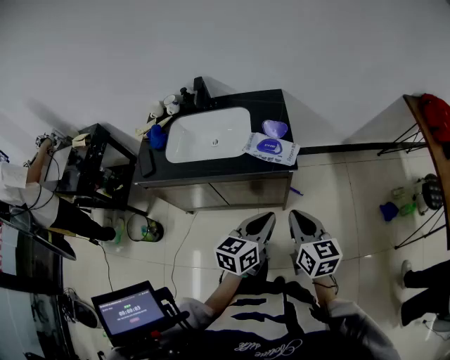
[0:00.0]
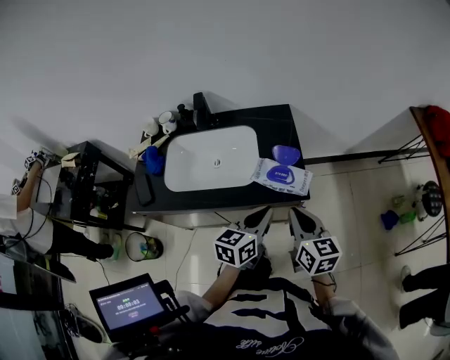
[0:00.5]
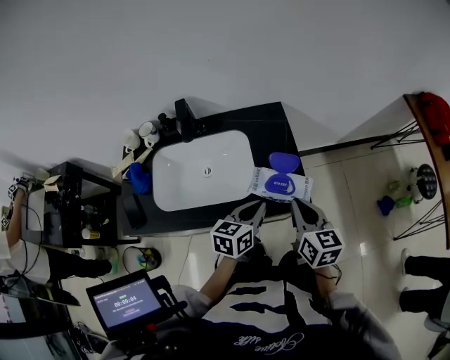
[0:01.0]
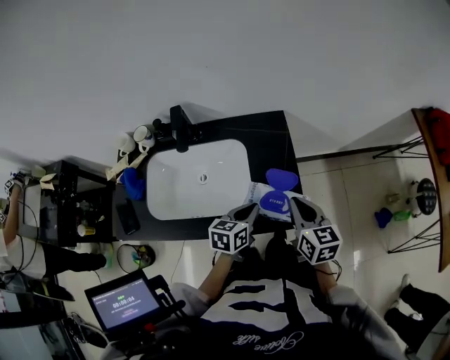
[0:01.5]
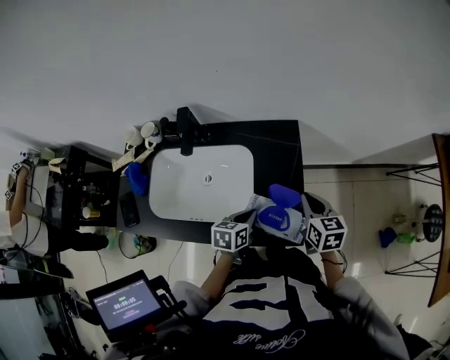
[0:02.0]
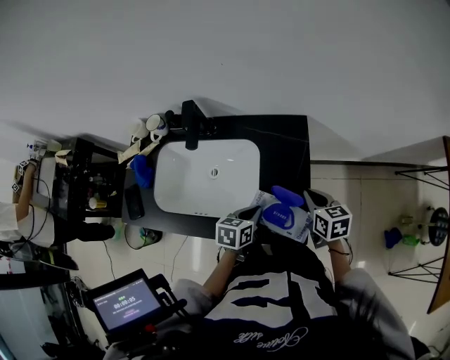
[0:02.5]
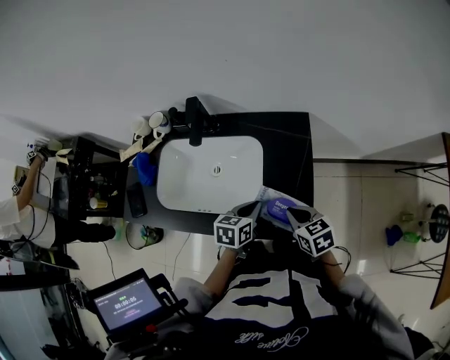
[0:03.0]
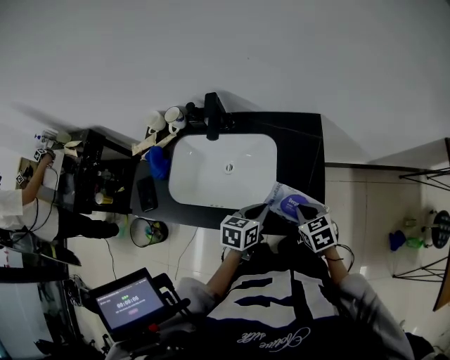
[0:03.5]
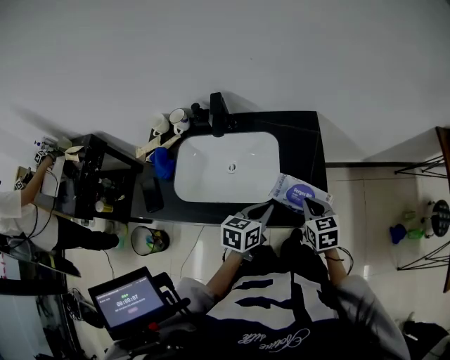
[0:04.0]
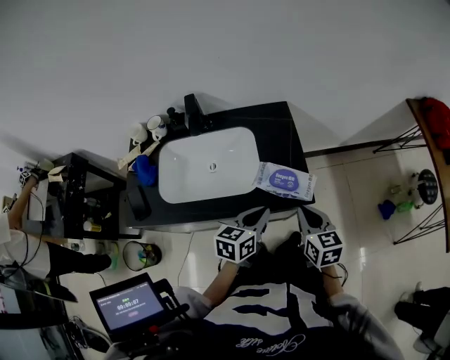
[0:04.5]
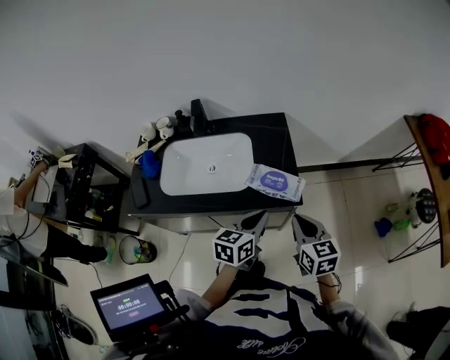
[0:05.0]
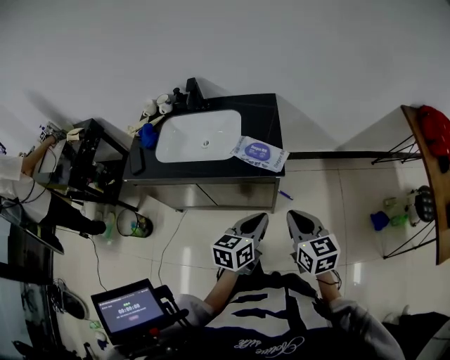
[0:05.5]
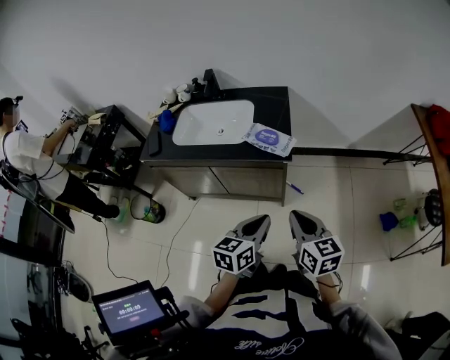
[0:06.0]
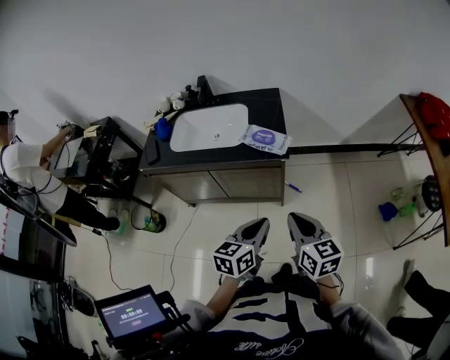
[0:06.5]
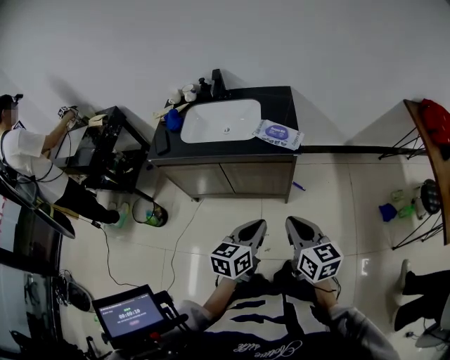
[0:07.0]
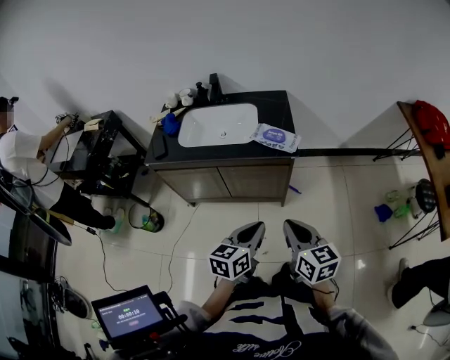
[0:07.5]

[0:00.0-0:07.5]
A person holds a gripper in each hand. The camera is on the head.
0:00.0 to 0:02.0: The left gripper travels forward, downward and to the left by some 35 cm, and turns by about 30 degrees. Meanwhile the right gripper is displaced forward by some 35 cm.
0:02.0 to 0:04.0: The right gripper moves backward and to the left, about 10 cm. The left gripper travels upward and backward by roughly 10 cm.
0:04.0 to 0:05.5: The left gripper is displaced backward and to the right by roughly 25 cm; the right gripper is displaced backward, to the right and upward by approximately 30 cm.
0:05.5 to 0:07.5: Both grippers move backward and to the left, approximately 20 cm.

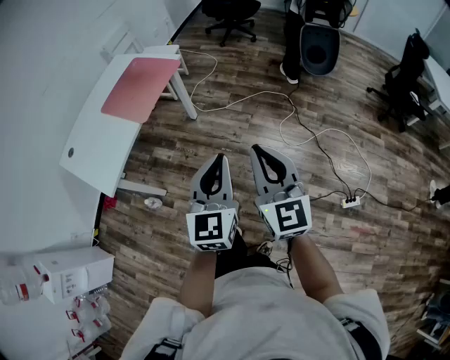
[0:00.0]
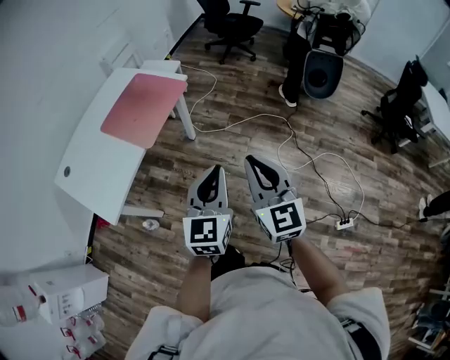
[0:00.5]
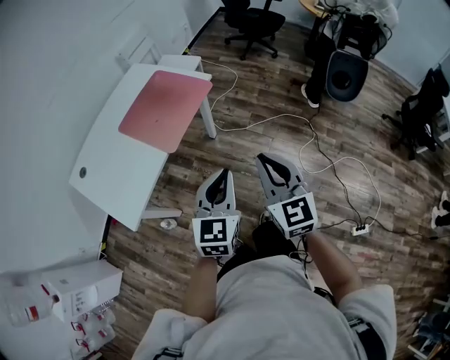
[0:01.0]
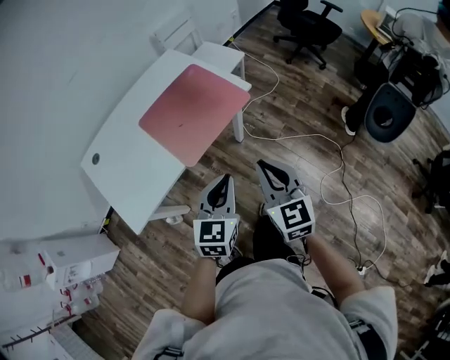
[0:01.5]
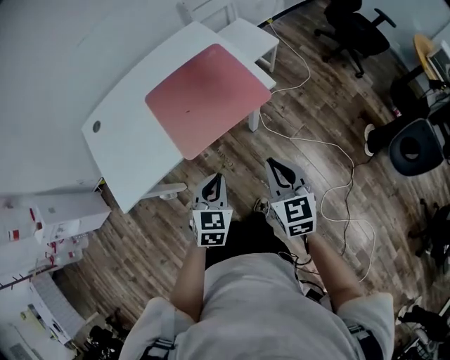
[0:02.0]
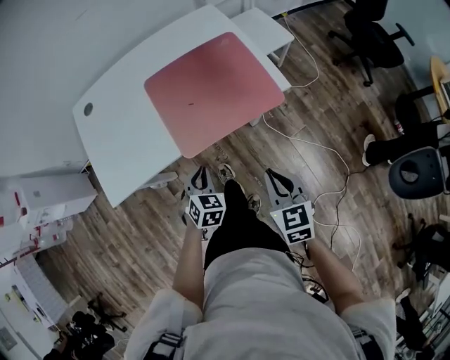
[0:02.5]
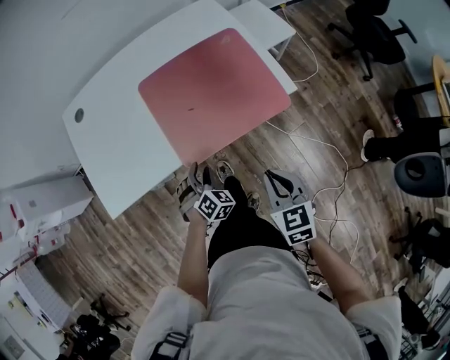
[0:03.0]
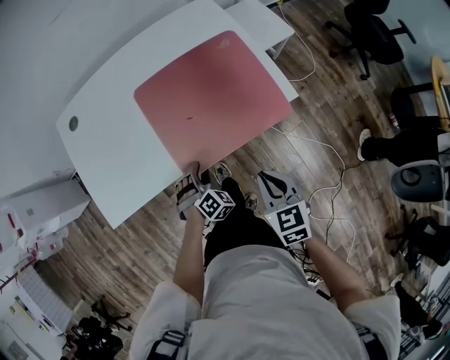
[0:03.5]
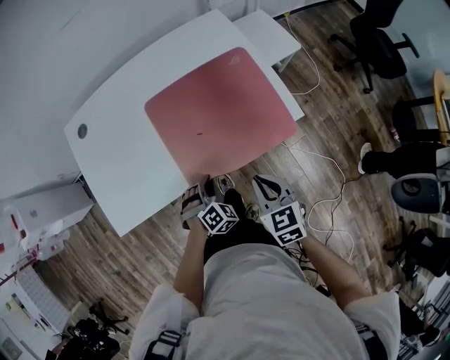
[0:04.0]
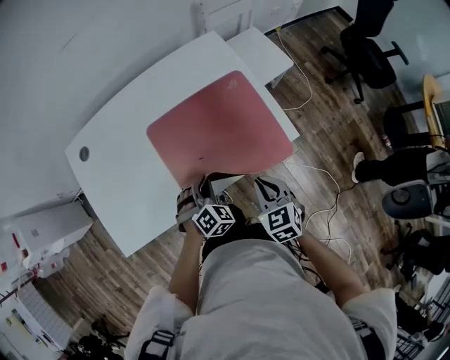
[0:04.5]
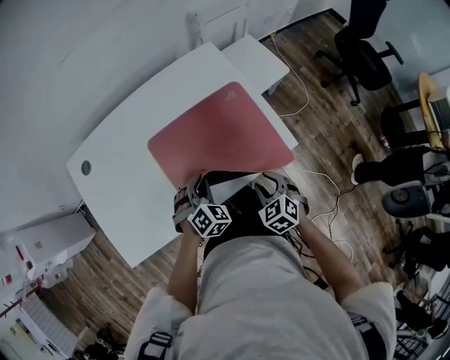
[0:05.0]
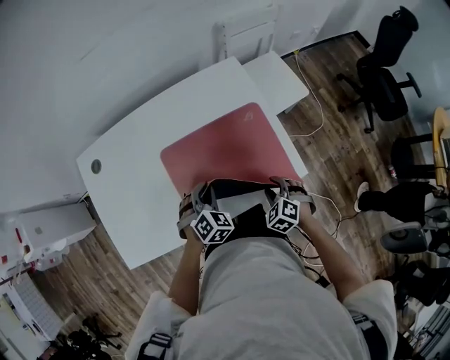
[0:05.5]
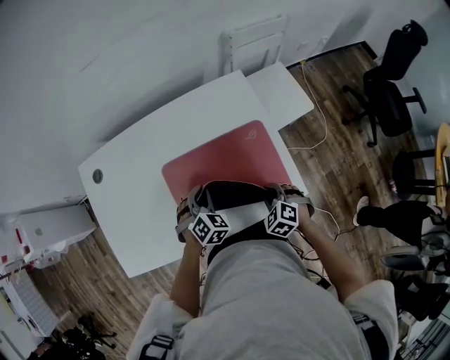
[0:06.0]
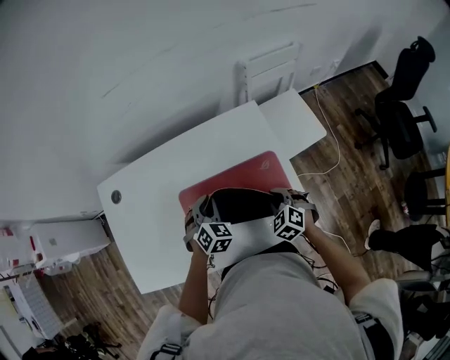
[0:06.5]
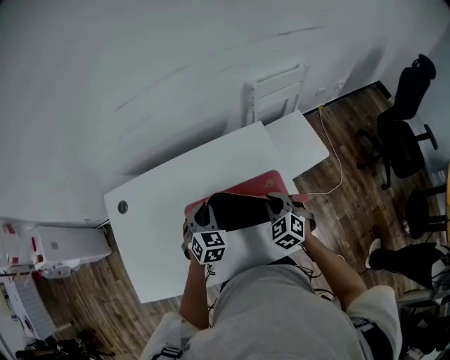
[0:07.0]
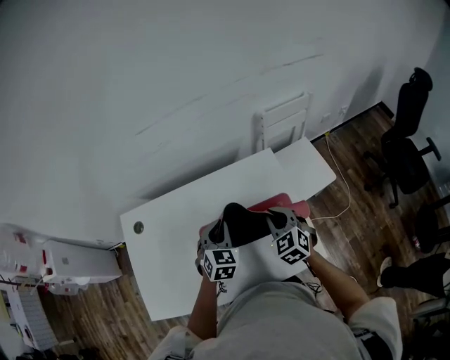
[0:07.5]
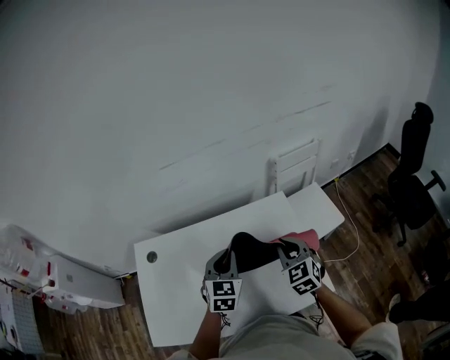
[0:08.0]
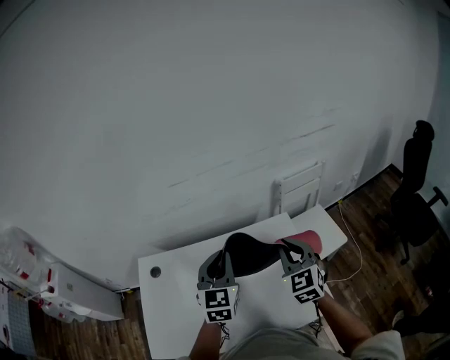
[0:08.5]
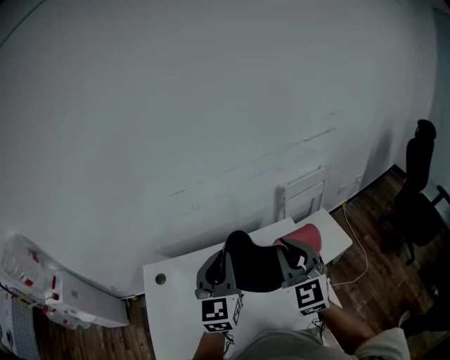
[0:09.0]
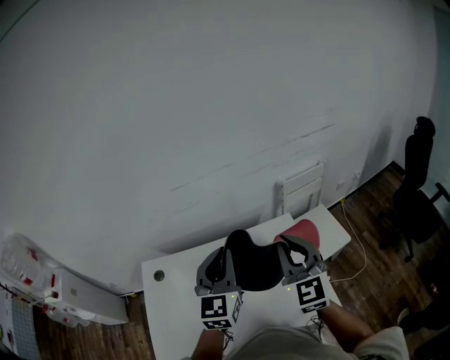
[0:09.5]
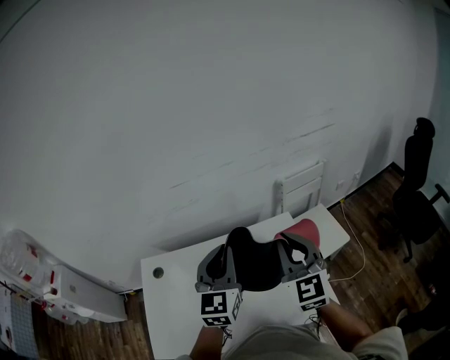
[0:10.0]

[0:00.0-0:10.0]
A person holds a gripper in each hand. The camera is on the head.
0:00.0 to 0:02.0: The right gripper moves roughly 50 cm, and swivels about 40 degrees. The left gripper ends up roughly 40 cm from where it was, and angles its fingers downward, by some 30 degrees.
0:02.0 to 0:04.0: The left gripper is displaced downward and forward by about 25 cm, rotates roughly 40 degrees, and opens and closes again, while the right gripper is displaced forward, downward and to the left by about 20 cm, and swivels roughly 20 degrees.
0:04.0 to 0:06.0: The right gripper heads forward, downward and to the right, covering about 20 cm, rotates around the line of its fingers by some 40 degrees, counterclockwise from behind, and opens, then closes once more, while the left gripper is displaced forward by approximately 20 cm.
0:06.0 to 0:08.0: The grippers both shift upward and forward by approximately 25 cm. The right gripper tilts its fingers roughly 40 degrees upward; the left gripper rotates some 40 degrees.
0:08.0 to 0:10.0: The two grippers go about 15 cm upward. The left gripper rotates some 20 degrees, while the right gripper changes its angle by approximately 30 degrees.

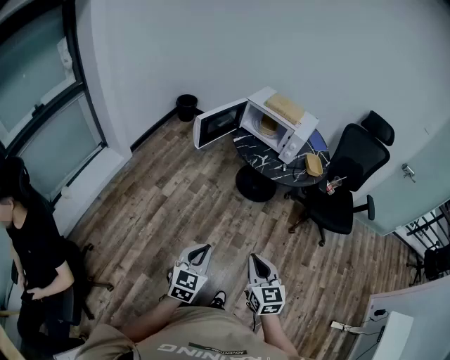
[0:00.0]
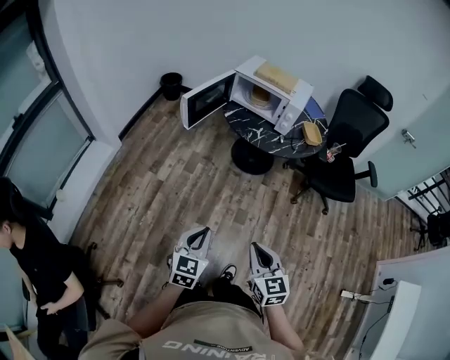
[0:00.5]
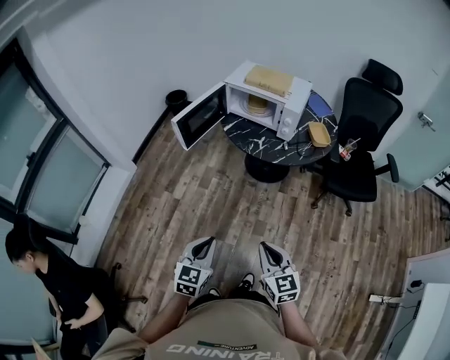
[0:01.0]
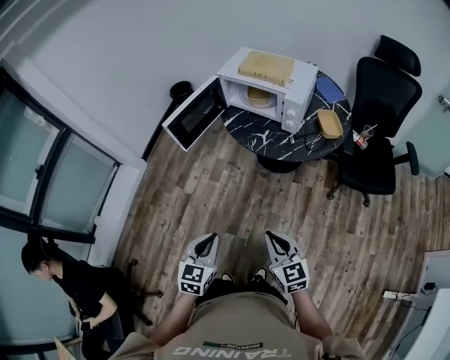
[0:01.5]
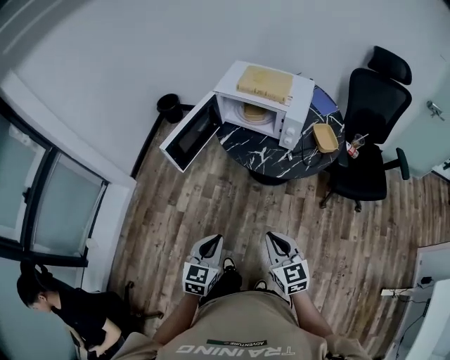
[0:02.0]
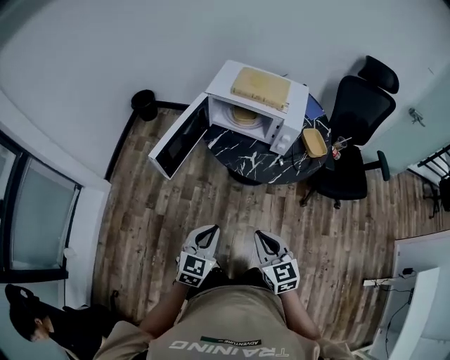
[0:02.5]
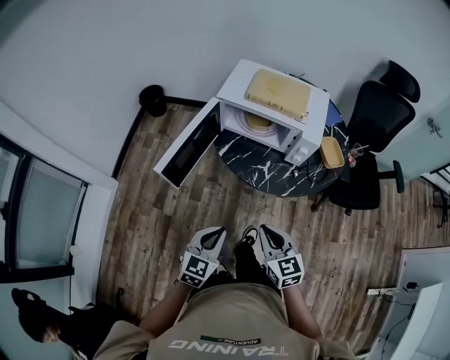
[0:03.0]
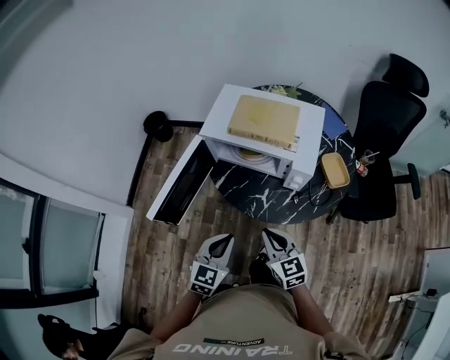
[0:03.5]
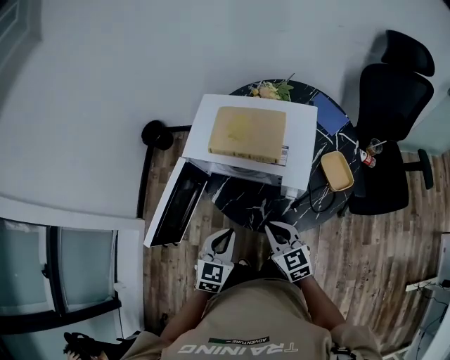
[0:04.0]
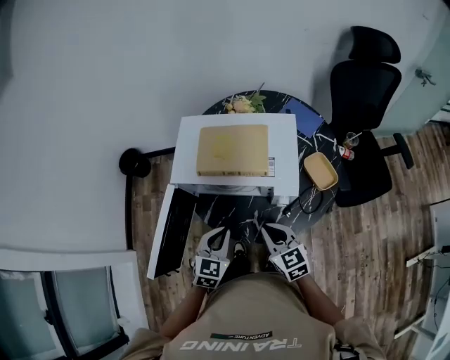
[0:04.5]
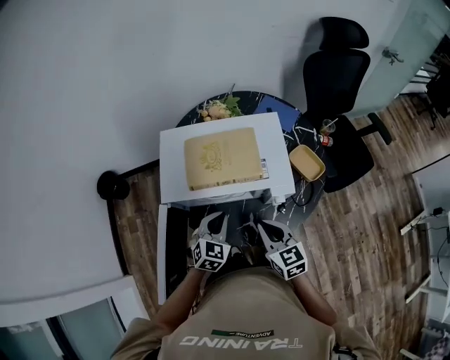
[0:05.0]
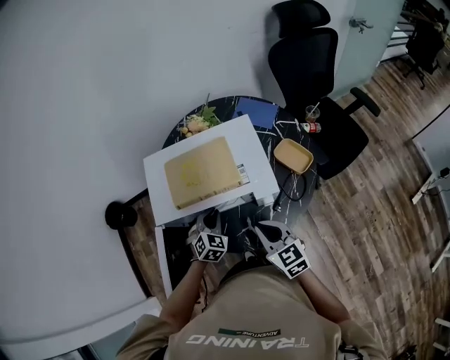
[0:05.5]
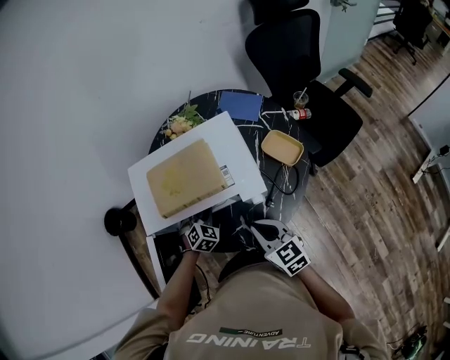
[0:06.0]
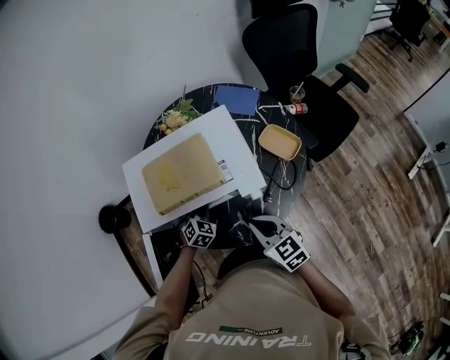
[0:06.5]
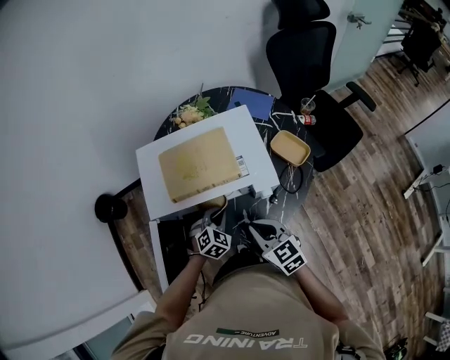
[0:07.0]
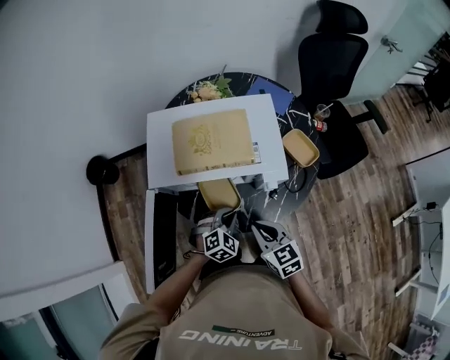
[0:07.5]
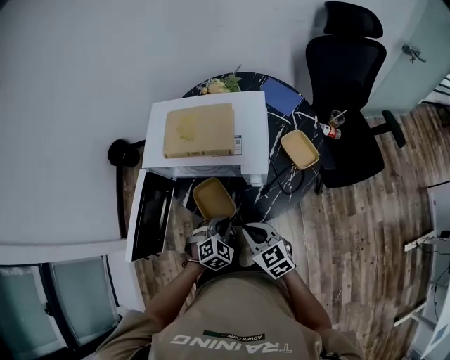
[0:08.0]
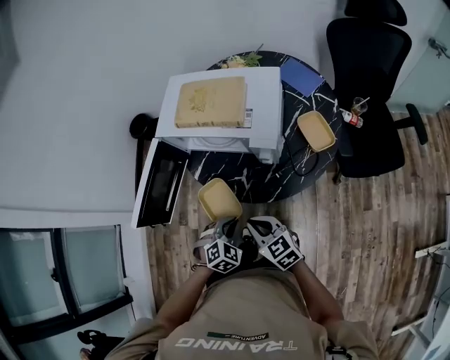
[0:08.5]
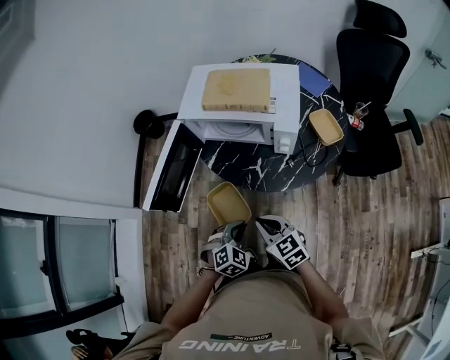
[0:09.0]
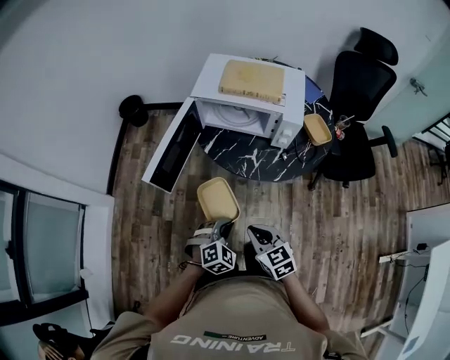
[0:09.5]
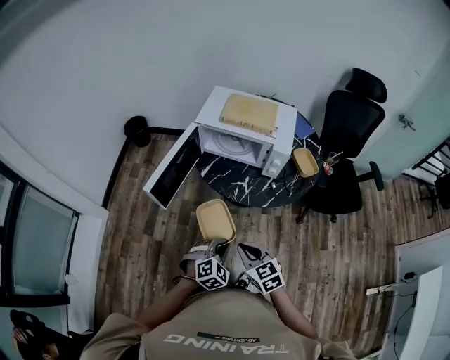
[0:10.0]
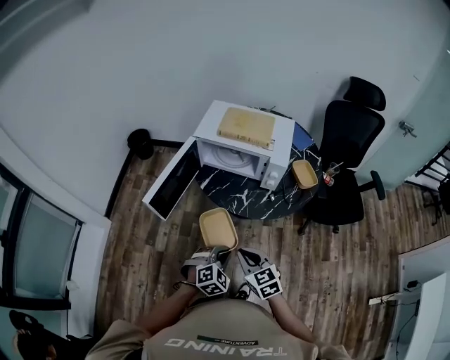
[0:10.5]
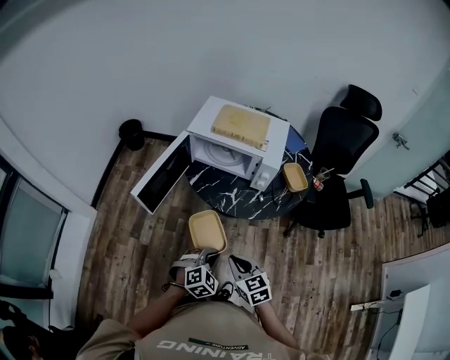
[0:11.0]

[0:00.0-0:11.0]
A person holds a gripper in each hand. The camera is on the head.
0:00.0 to 0:02.0: The two grippers go about 25 cm forward.
0:02.0 to 0:03.5: The two grippers go some 25 cm forward.
0:03.5 to 0:05.5: The left gripper moves forward, roughly 30 cm, and swivels about 40 degrees; the right gripper moves forward, roughly 15 cm, and changes its angle by roughly 20 degrees.
0:05.5 to 0:07.5: The right gripper shifts by approximately 5 cm, while the left gripper heads backward and to the right, covering some 10 cm.
0:07.5 to 0:09.0: The right gripper changes place by about 15 cm, and swivels some 30 degrees. The left gripper ends up some 25 cm from where it was, and swivels about 20 degrees.
0:09.0 to 0:11.0: The two grippers go approximately 10 cm backward.
